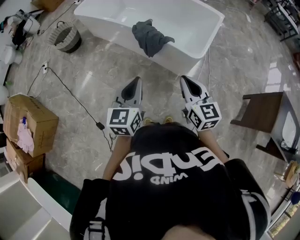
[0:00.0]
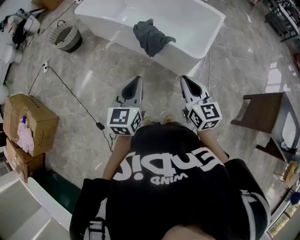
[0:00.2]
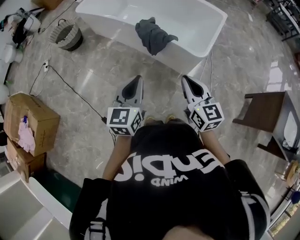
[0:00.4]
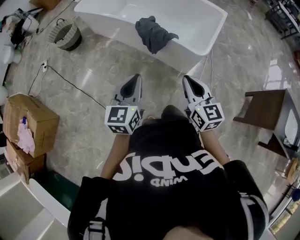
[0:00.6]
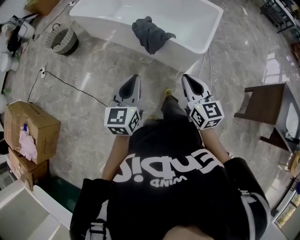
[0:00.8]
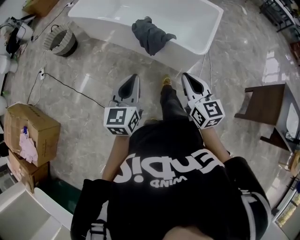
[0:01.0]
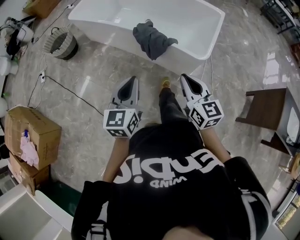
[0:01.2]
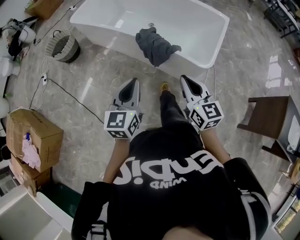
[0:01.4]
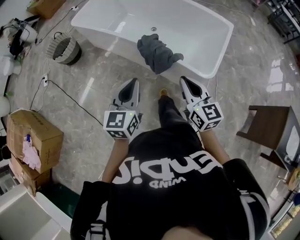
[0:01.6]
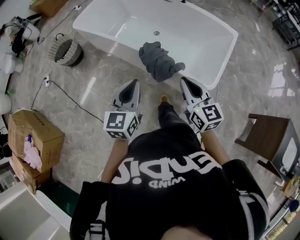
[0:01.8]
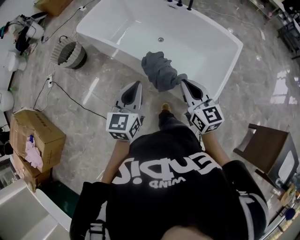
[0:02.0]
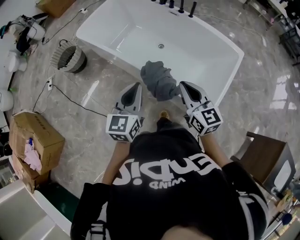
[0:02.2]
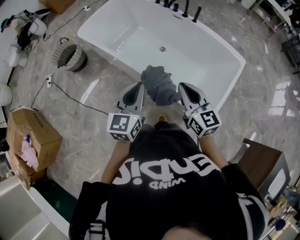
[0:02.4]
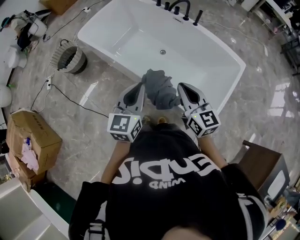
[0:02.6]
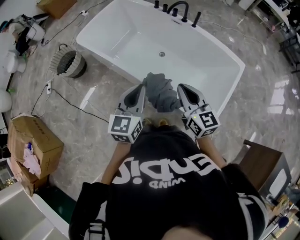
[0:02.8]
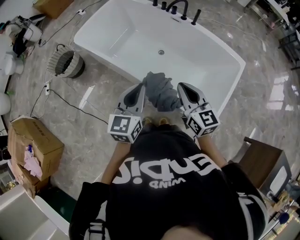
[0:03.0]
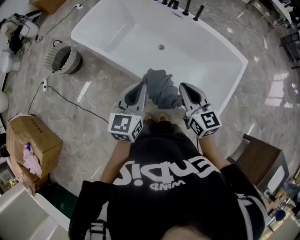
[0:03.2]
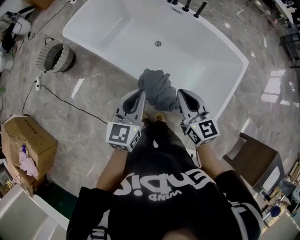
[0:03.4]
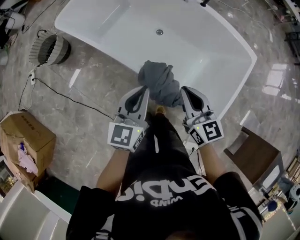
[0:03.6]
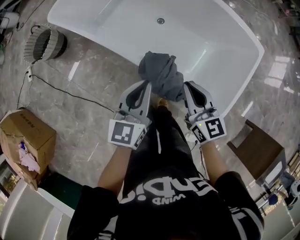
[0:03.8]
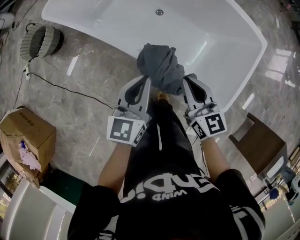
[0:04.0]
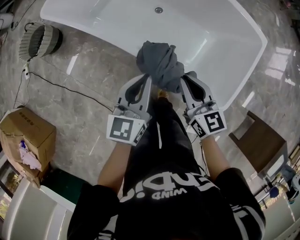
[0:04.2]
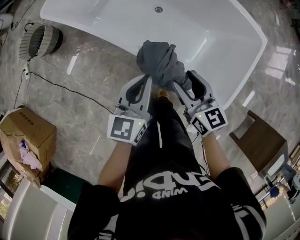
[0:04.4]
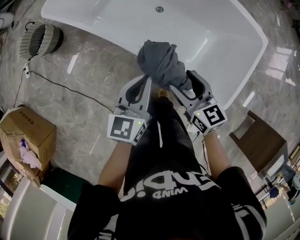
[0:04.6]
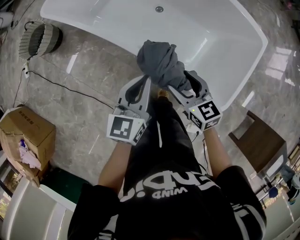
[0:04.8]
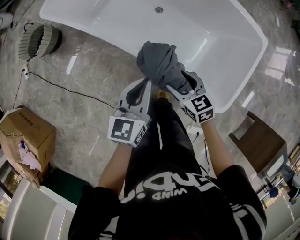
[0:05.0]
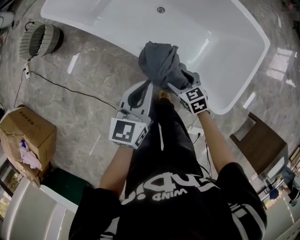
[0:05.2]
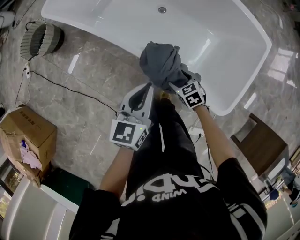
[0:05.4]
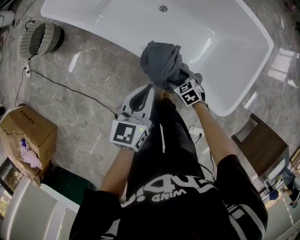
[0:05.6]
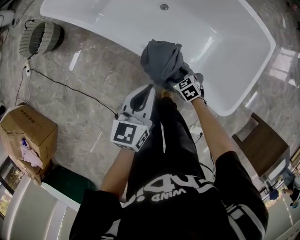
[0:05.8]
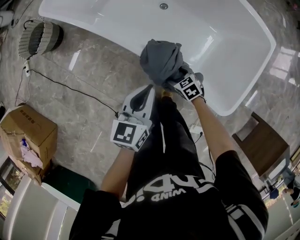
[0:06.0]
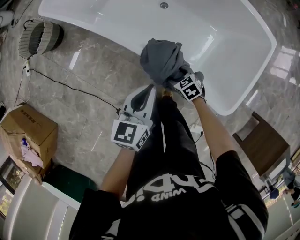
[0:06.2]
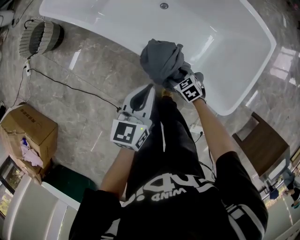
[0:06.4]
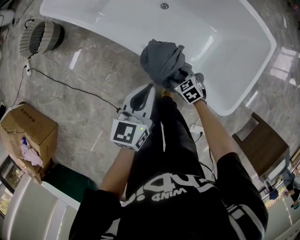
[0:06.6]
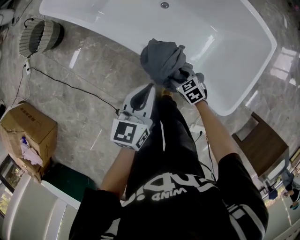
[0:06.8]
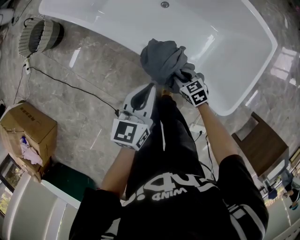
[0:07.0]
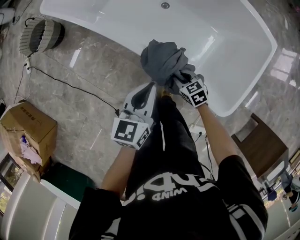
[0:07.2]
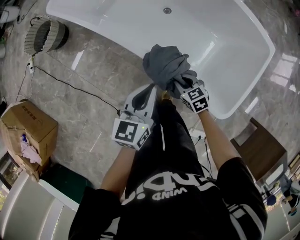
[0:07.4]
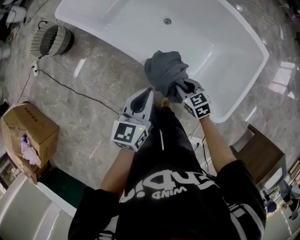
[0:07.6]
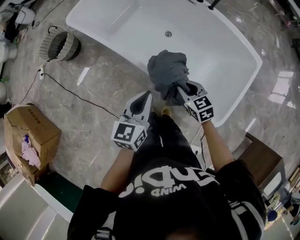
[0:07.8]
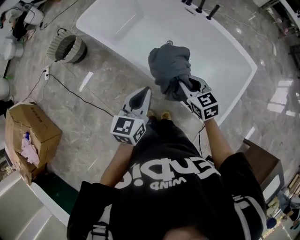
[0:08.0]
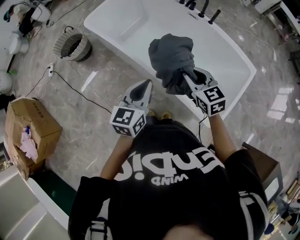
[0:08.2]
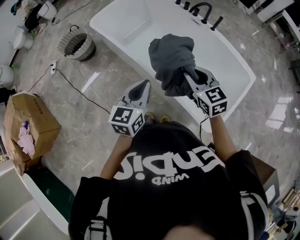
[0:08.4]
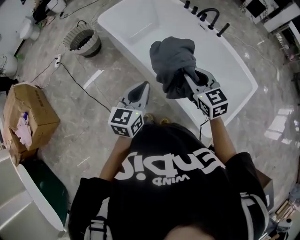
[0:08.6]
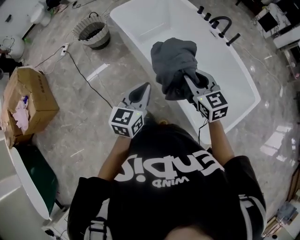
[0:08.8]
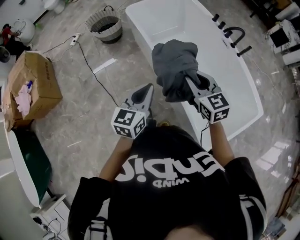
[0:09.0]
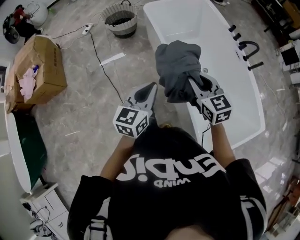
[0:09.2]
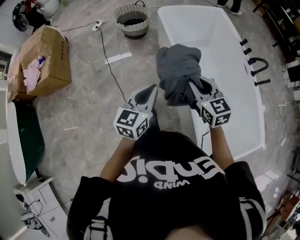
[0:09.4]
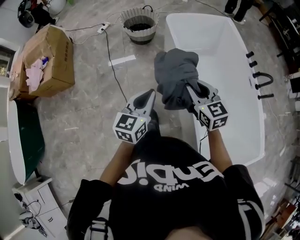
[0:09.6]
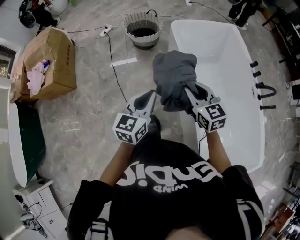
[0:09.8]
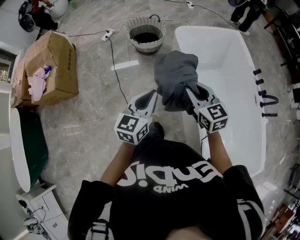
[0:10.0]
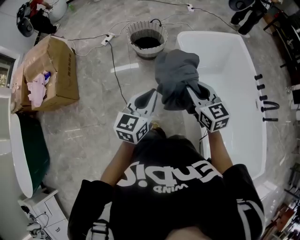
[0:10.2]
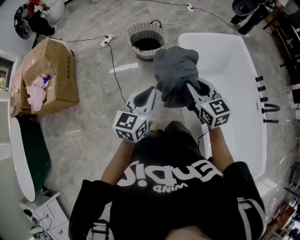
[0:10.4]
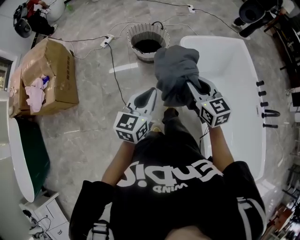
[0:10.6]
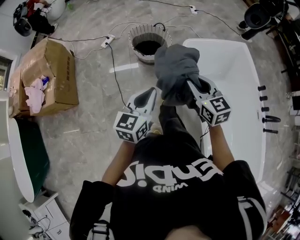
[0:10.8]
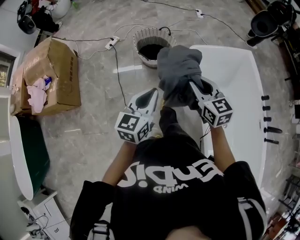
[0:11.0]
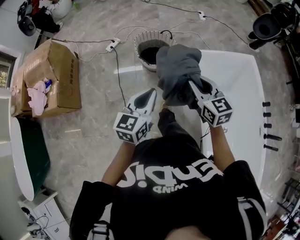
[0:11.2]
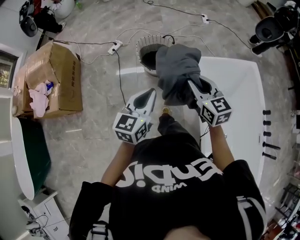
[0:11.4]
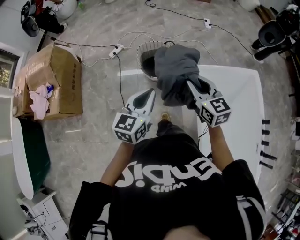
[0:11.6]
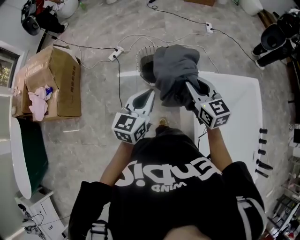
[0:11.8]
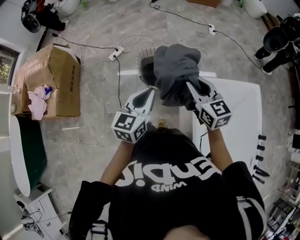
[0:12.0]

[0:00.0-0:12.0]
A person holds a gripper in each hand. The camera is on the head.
0:00.0 to 0:01.6: Both grippers travel together forward, approximately 20 cm.
0:01.6 to 0:03.0: Both grippers travel together forward, roughly 30 cm.
0:03.0 to 0:04.4: Both grippers move downward, approximately 15 cm. The right gripper opens.
0:04.4 to 0:06.0: The left gripper travels downward by approximately 5 cm; the right gripper heads downward, covering roughly 30 cm, and points its fingers about 40 degrees further downward.
0:06.0 to 0:07.6: The left gripper heads upward, covering roughly 5 cm. The right gripper heads upward, covering approximately 15 cm, and closes.
0:07.6 to 0:09.0: The right gripper goes roughly 30 cm upward, and changes its angle by about 30 degrees, while the left gripper is displaced upward by approximately 15 cm, and changes its angle by about 30 degrees.
0:09.0 to 0:10.4: The two grippers travel together, forward and to the left, about 50 cm.
0:10.4 to 0:12.0: The two grippers go about 40 cm forward.

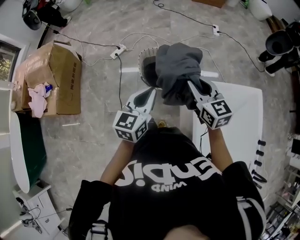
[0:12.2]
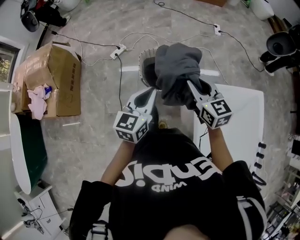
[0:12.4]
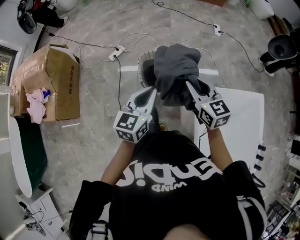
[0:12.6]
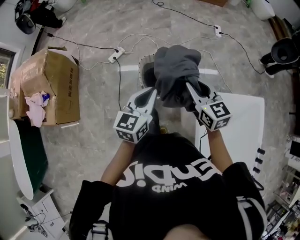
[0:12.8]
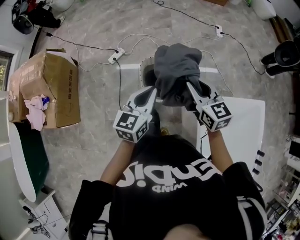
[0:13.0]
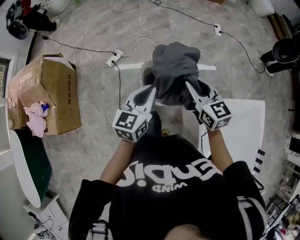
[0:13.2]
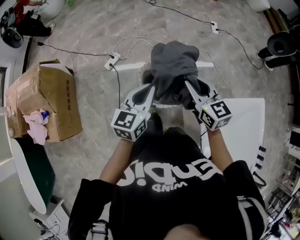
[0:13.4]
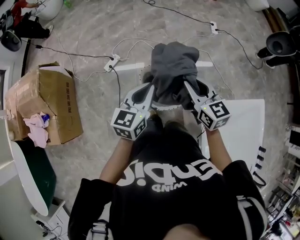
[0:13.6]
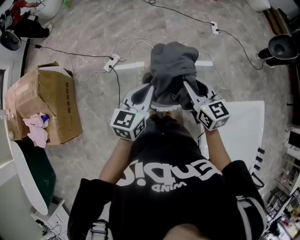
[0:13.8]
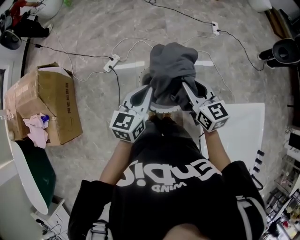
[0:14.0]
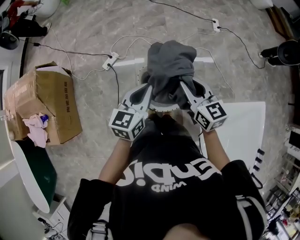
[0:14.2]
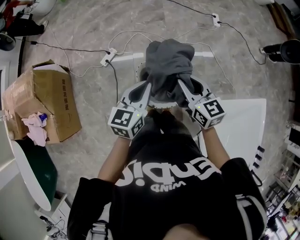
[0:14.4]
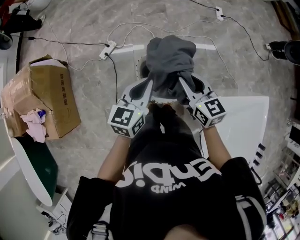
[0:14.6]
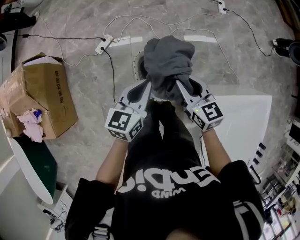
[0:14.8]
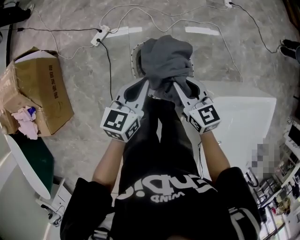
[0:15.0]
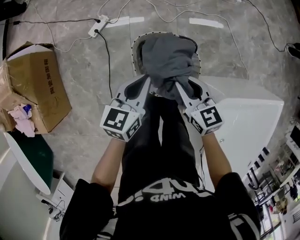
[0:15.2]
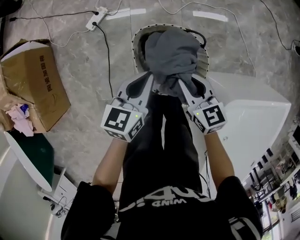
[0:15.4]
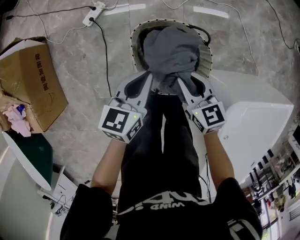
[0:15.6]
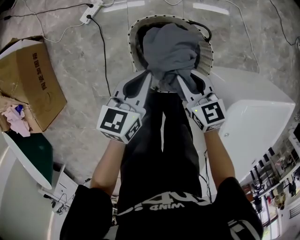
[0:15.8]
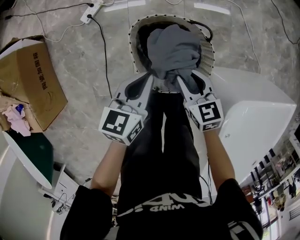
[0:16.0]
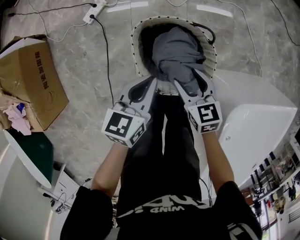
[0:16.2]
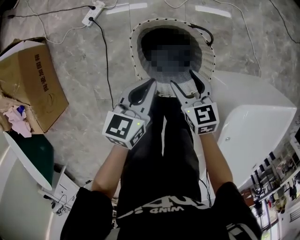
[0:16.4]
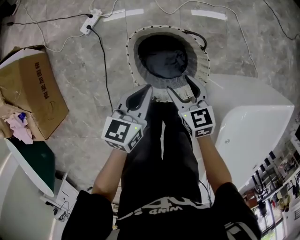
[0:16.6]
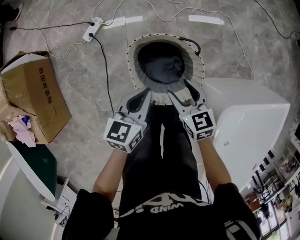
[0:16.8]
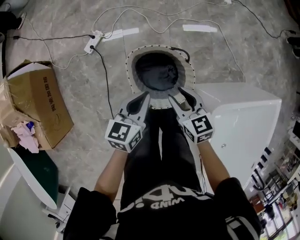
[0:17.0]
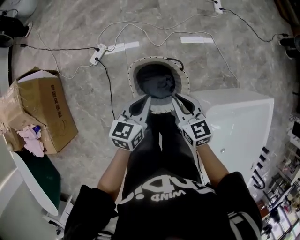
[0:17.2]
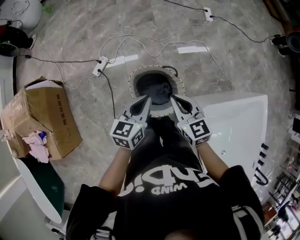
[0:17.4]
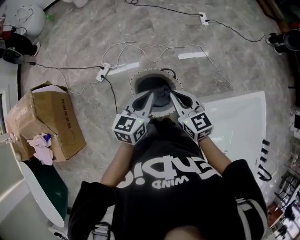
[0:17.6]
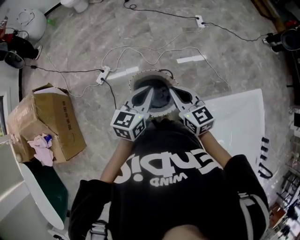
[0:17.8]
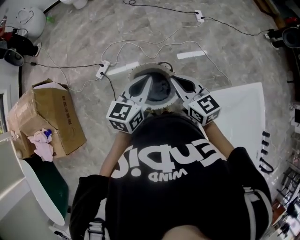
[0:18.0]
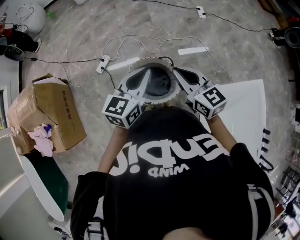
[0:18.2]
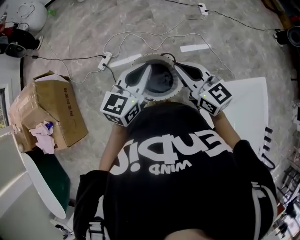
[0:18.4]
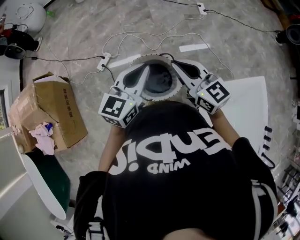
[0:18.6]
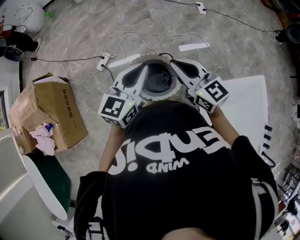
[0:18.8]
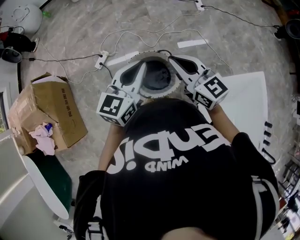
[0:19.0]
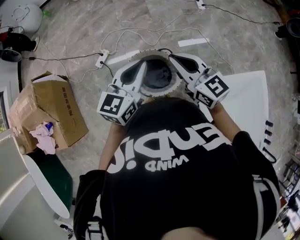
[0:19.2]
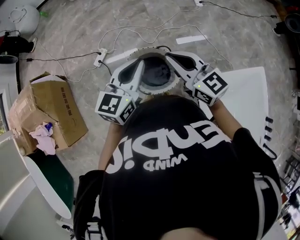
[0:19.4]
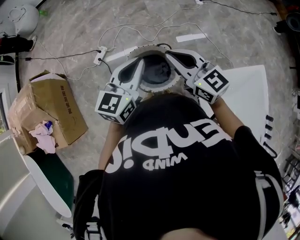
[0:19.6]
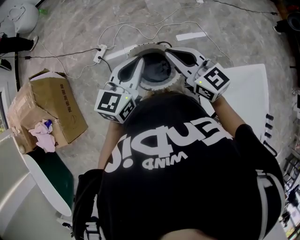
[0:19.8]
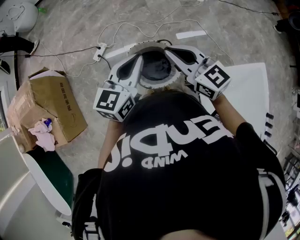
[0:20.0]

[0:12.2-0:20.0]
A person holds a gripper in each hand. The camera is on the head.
0:12.2 to 0:13.8: Both grippers travel together forward, roughly 30 cm.
0:13.8 to 0:15.4: The grippers both shift downward by approximately 30 cm.
0:15.4 to 0:16.8: The right gripper opens.
0:16.8 to 0:18.4: The two grippers go approximately 40 cm upward. The left gripper changes its angle by approximately 30 degrees. The right gripper tips its fingers upward by some 30 degrees, and closes up.
0:18.4 to 0:20.0: The grippers make only small movements.

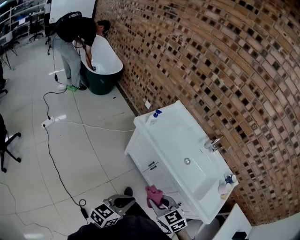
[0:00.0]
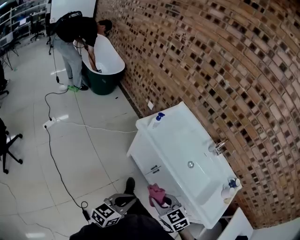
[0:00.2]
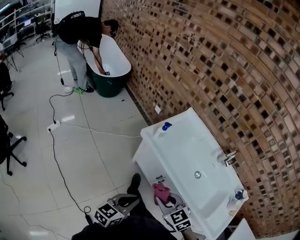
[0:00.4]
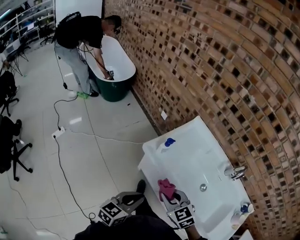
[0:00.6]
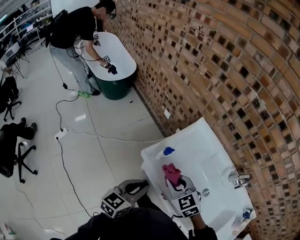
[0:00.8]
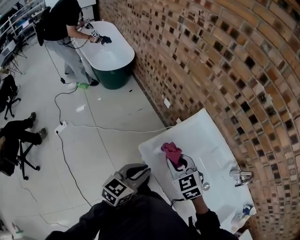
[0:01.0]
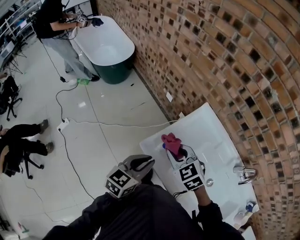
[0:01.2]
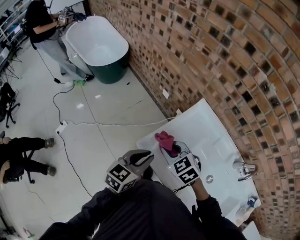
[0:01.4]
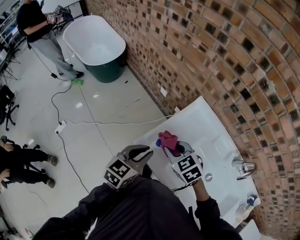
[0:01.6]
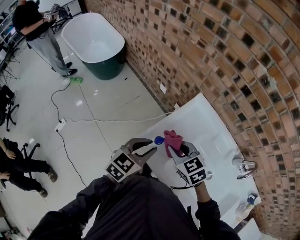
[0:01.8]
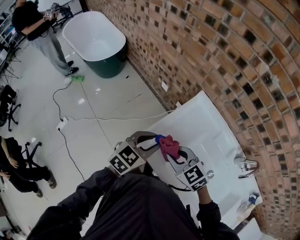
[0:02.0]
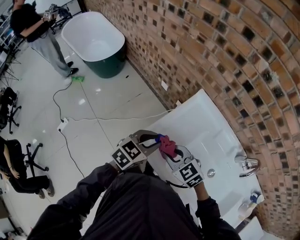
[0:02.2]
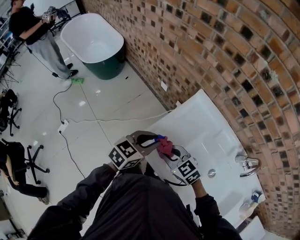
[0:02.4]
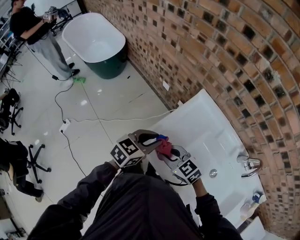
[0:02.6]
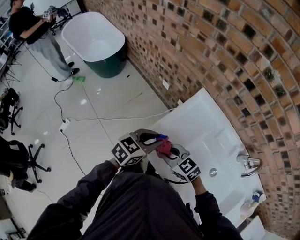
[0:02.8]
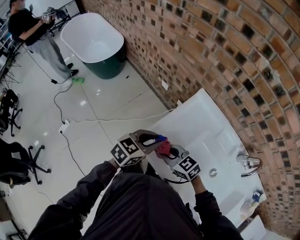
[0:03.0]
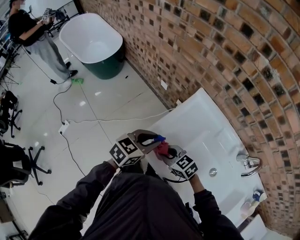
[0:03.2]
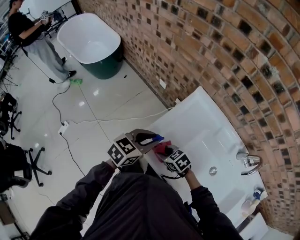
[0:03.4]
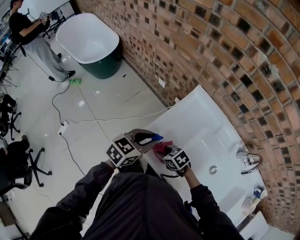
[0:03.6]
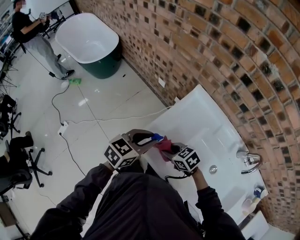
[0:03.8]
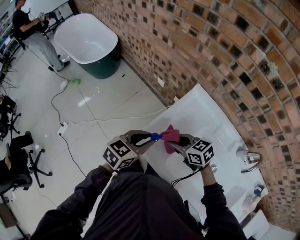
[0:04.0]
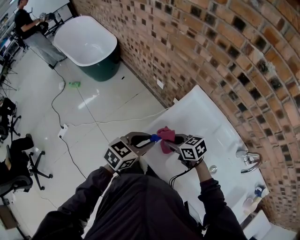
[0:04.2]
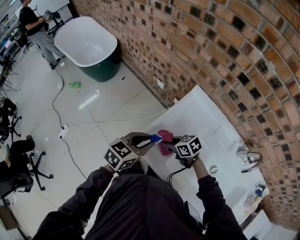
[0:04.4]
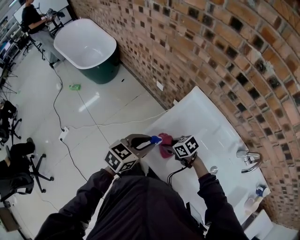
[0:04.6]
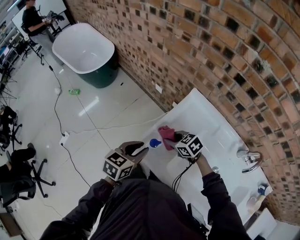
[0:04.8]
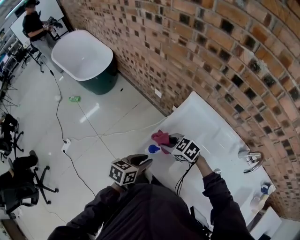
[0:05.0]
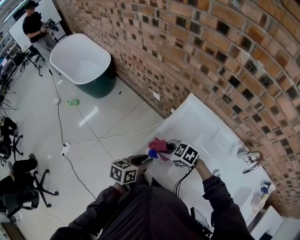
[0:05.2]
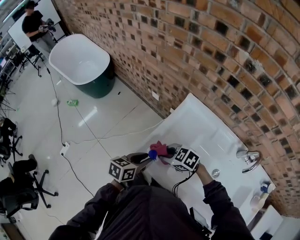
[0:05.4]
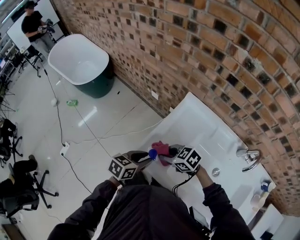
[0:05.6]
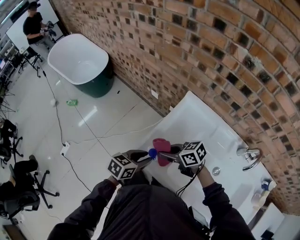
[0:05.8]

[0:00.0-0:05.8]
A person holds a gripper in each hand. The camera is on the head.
0:00.0 to 0:01.4: The pair of grippers is taken forward, roughly 50 cm.
0:01.4 to 0:02.8: The right gripper heads downward, covering roughly 5 cm, and turns by approximately 20 degrees. The left gripper moves forward and to the right, roughly 10 cm.
0:02.8 to 0:04.4: The right gripper moves up and down over approximately 10 cm, changing direction 2 times, and swivels roughly 30 degrees.
0:04.4 to 0:05.8: The right gripper is displaced upward by roughly 10 cm; the left gripper goes roughly 5 cm downward.
